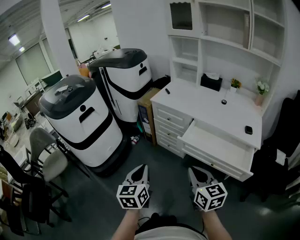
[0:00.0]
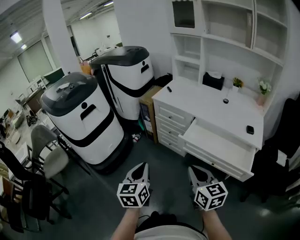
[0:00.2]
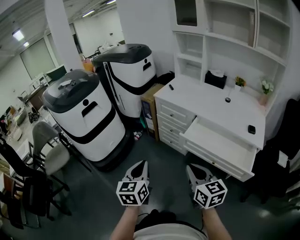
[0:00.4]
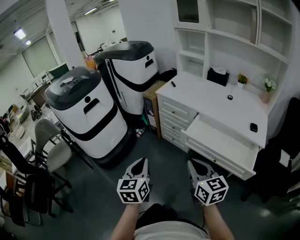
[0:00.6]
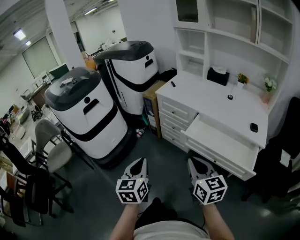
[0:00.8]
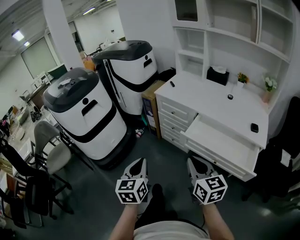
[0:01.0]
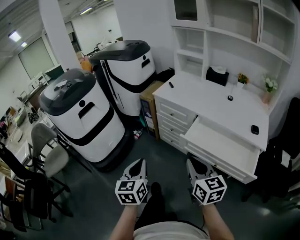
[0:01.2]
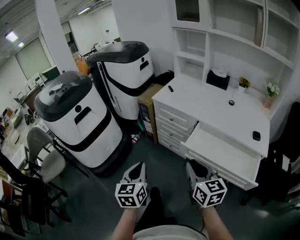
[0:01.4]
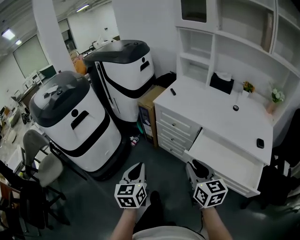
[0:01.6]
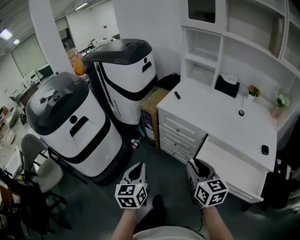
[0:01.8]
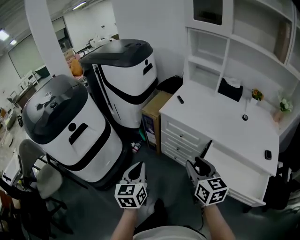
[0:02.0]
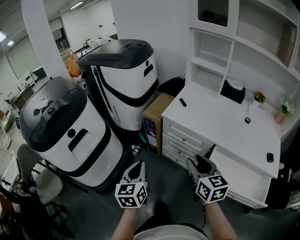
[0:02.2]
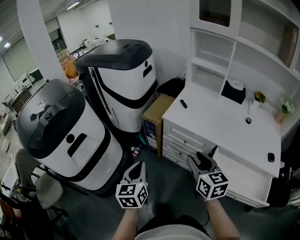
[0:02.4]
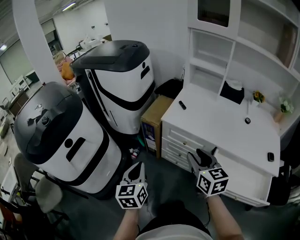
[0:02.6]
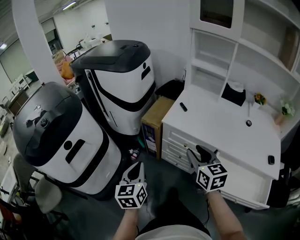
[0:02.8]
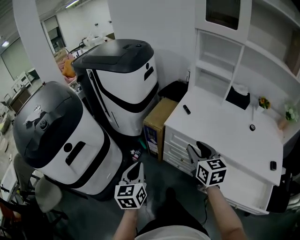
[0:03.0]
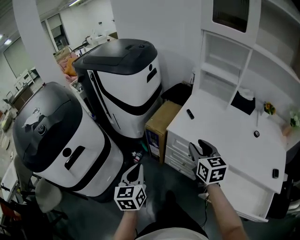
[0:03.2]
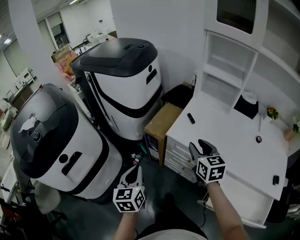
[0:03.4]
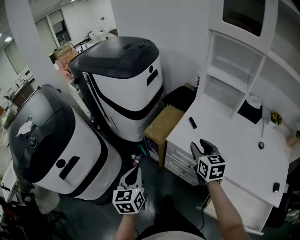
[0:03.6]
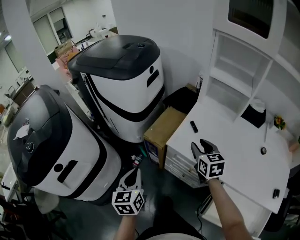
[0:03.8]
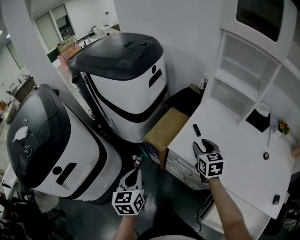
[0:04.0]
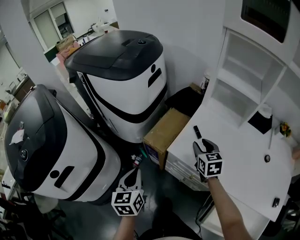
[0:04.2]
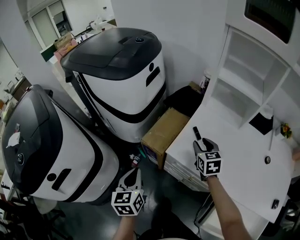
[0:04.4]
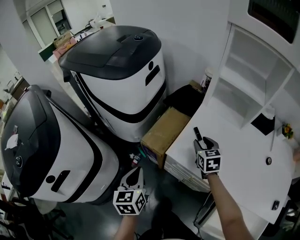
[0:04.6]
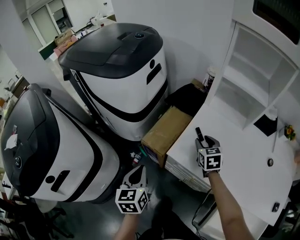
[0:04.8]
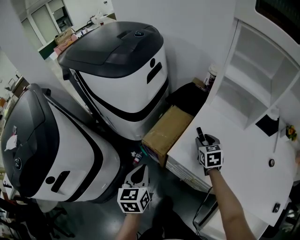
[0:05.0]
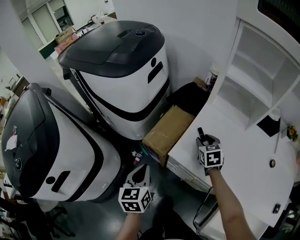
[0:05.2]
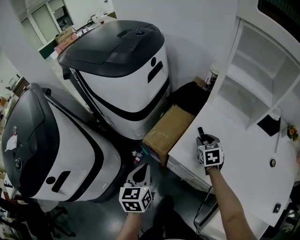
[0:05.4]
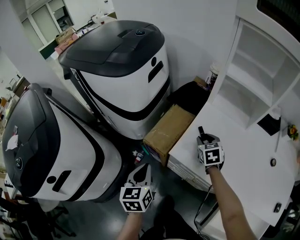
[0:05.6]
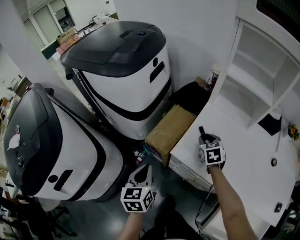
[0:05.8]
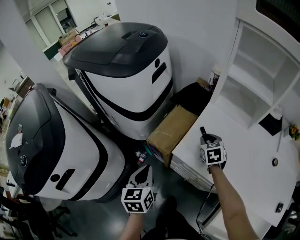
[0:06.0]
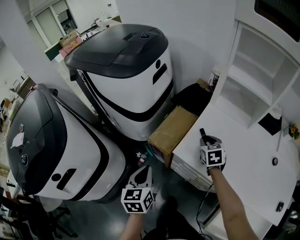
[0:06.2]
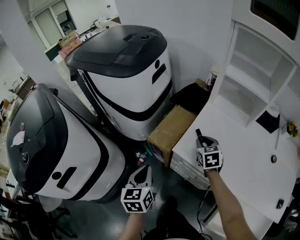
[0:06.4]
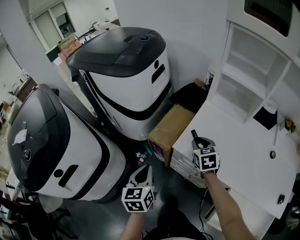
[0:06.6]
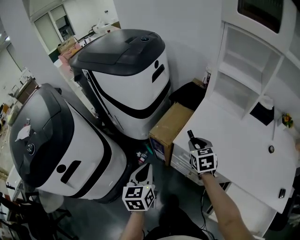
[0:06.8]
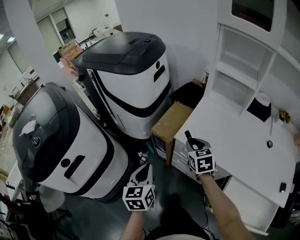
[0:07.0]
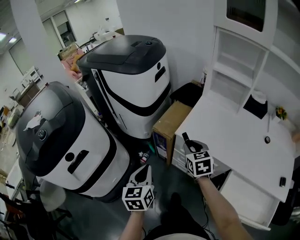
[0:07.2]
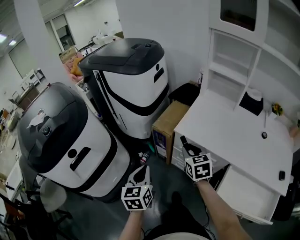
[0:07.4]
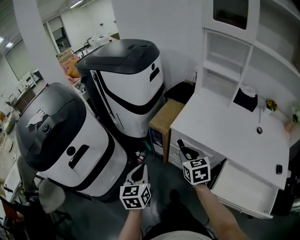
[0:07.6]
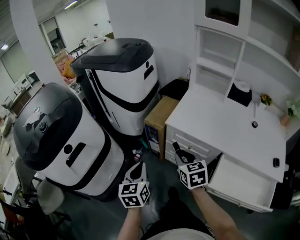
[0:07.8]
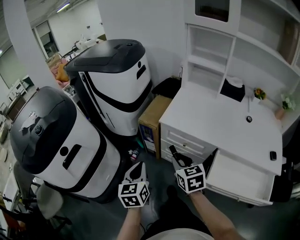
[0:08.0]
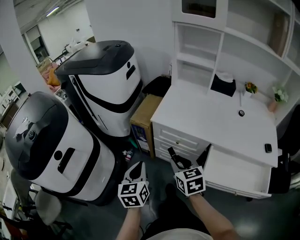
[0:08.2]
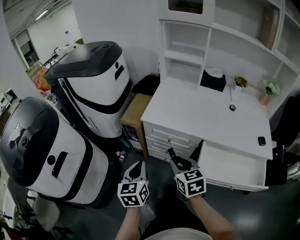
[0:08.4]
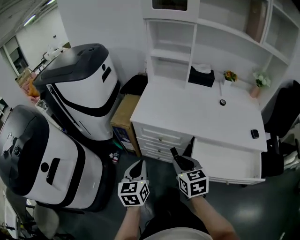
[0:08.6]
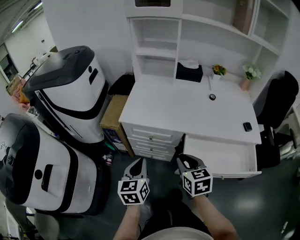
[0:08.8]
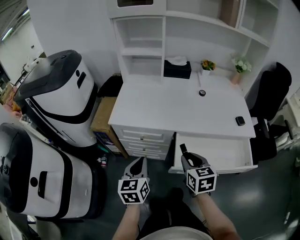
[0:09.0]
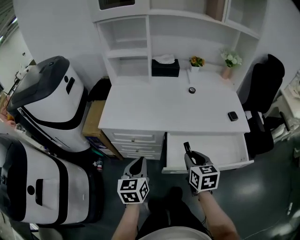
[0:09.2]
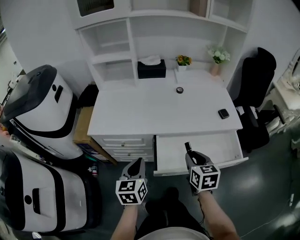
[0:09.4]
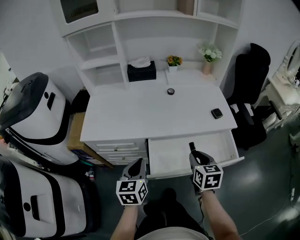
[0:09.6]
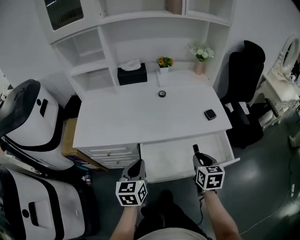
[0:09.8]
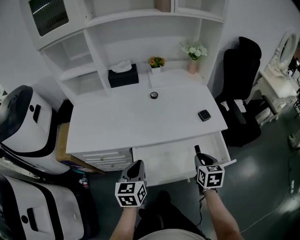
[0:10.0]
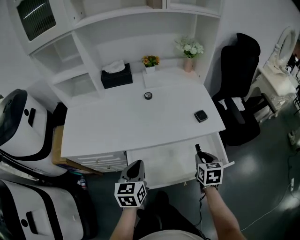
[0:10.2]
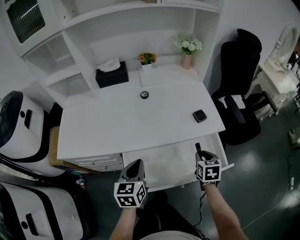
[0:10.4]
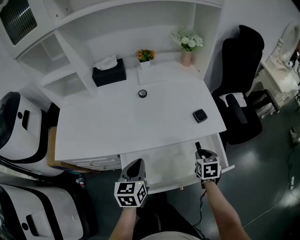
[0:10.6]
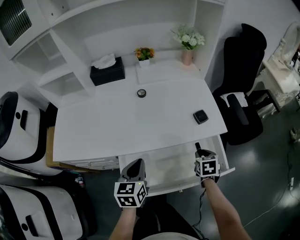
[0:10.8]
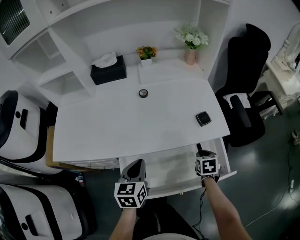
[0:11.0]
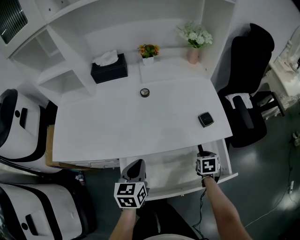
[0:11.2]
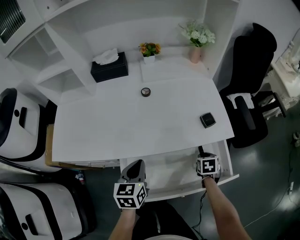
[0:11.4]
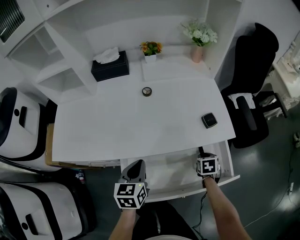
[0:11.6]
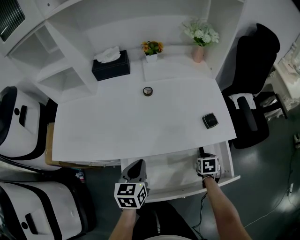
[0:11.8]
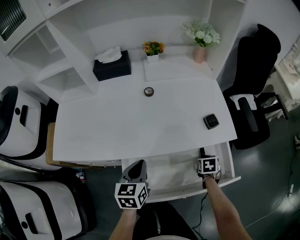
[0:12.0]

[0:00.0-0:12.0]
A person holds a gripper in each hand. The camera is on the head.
0:00.0 to 0:01.6: Both grippers travel together forward, about 15 cm.
0:01.6 to 0:03.0: Both grippers travel together forward, approximately 30 cm.
0:03.0 to 0:04.4: The left gripper goes about 20 cm forward. Meanwhile the right gripper goes approximately 30 cm forward and downward.
0:04.4 to 0:06.0: The right gripper heads downward, covering some 5 cm.
0:06.0 to 0:07.6: The left gripper shifts some 20 cm backward. The right gripper shifts about 30 cm backward and to the left.
0:07.6 to 0:09.0: The left gripper ends up some 20 cm from where it was, and rotates some 30 degrees. The right gripper changes place by about 30 cm, and swivels approximately 30 degrees.
0:09.0 to 0:10.4: The right gripper shifts some 35 cm to the right, and changes its angle by some 30 degrees; the left gripper moves to the right and forward, approximately 30 cm.
0:10.4 to 0:12.0: The right gripper travels downward by about 15 cm, and rotates about 20 degrees, while the left gripper goes about 5 cm forward.

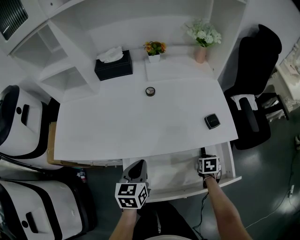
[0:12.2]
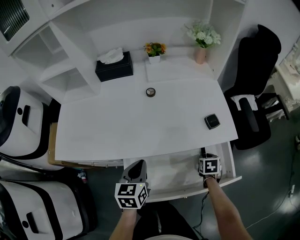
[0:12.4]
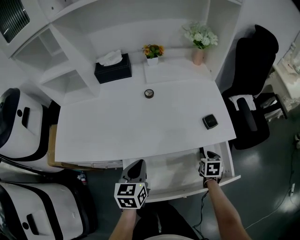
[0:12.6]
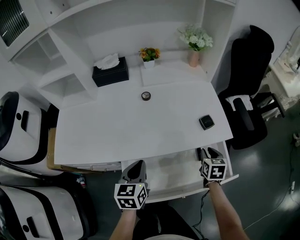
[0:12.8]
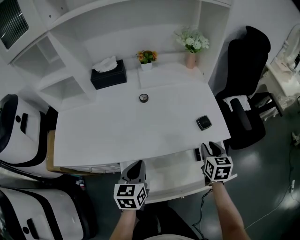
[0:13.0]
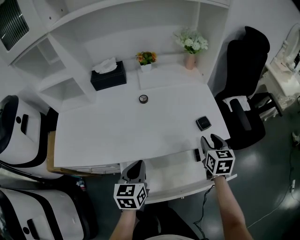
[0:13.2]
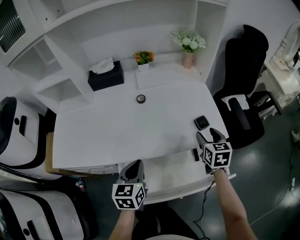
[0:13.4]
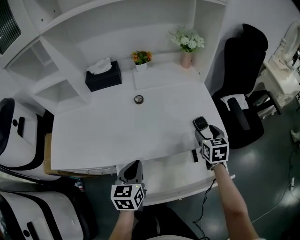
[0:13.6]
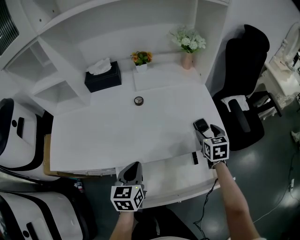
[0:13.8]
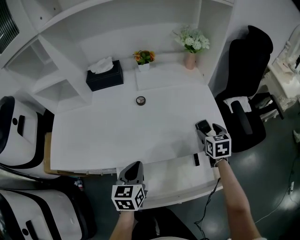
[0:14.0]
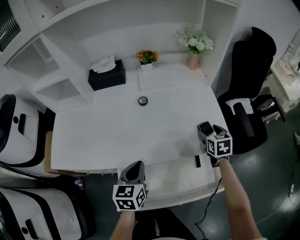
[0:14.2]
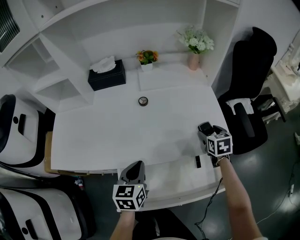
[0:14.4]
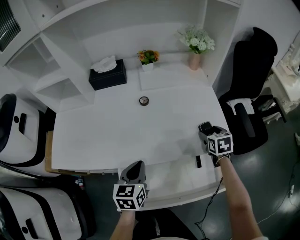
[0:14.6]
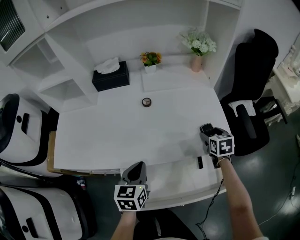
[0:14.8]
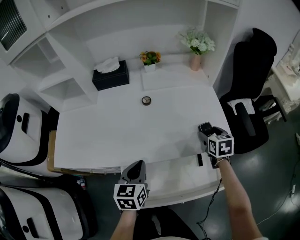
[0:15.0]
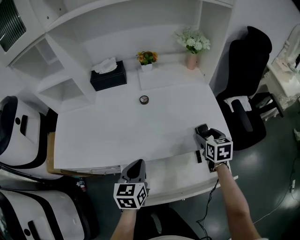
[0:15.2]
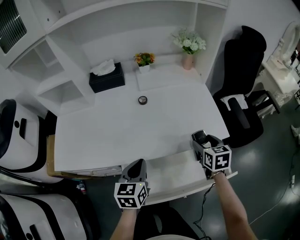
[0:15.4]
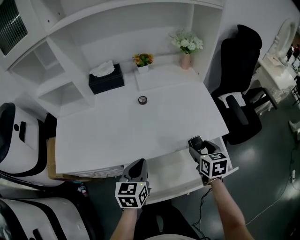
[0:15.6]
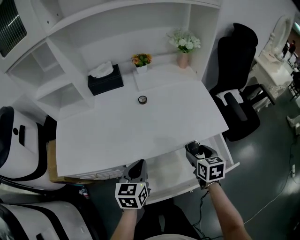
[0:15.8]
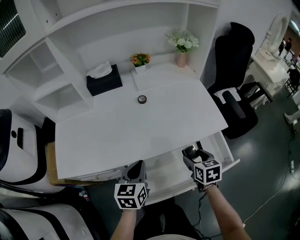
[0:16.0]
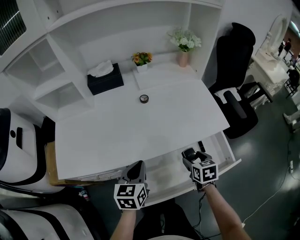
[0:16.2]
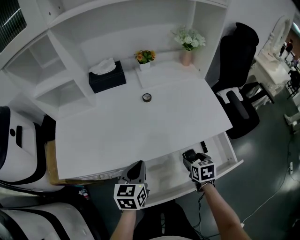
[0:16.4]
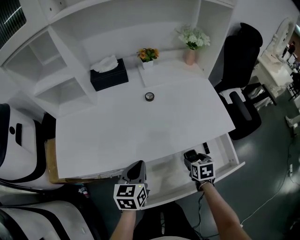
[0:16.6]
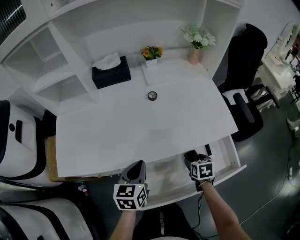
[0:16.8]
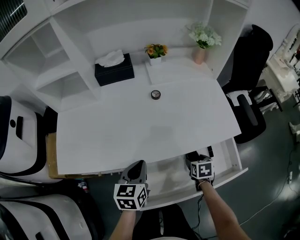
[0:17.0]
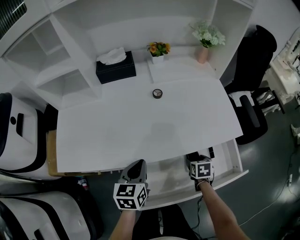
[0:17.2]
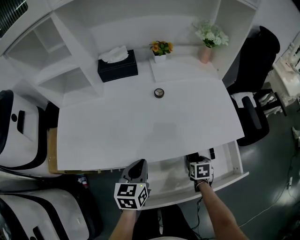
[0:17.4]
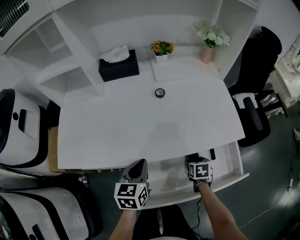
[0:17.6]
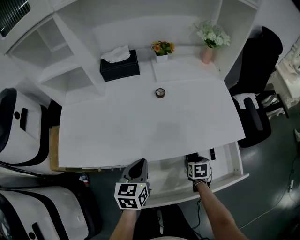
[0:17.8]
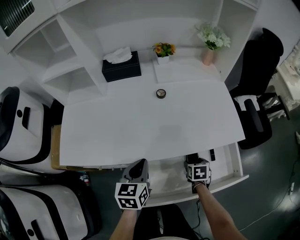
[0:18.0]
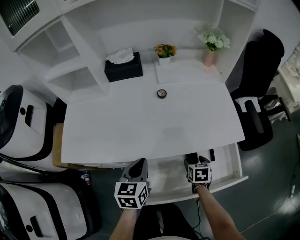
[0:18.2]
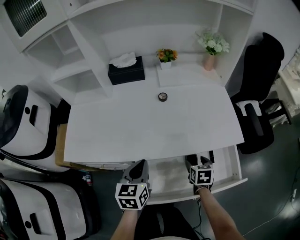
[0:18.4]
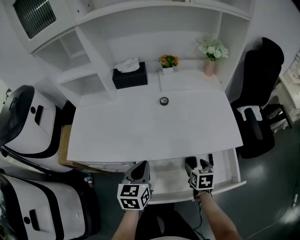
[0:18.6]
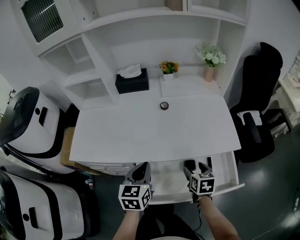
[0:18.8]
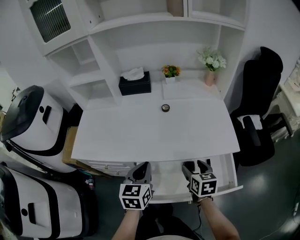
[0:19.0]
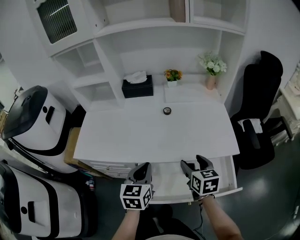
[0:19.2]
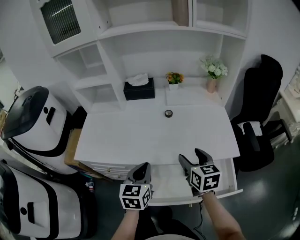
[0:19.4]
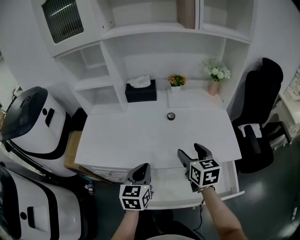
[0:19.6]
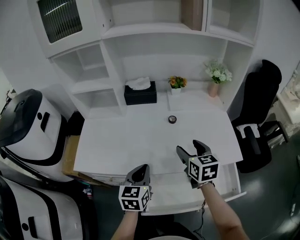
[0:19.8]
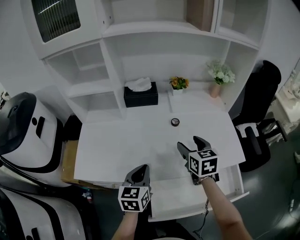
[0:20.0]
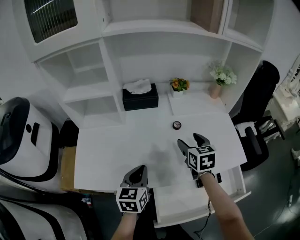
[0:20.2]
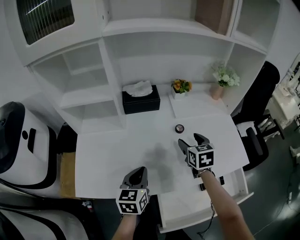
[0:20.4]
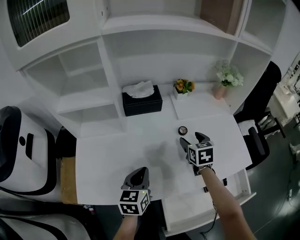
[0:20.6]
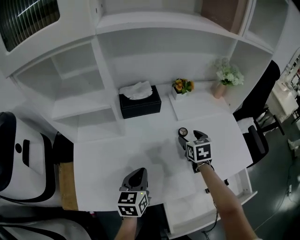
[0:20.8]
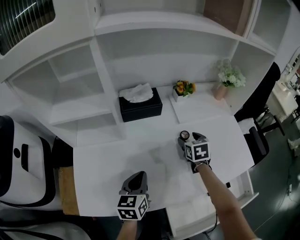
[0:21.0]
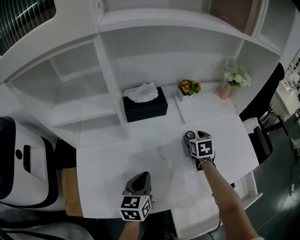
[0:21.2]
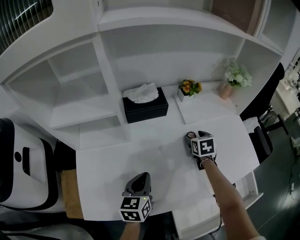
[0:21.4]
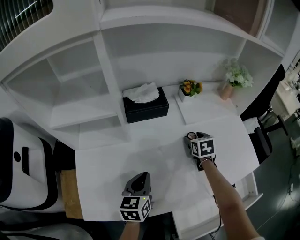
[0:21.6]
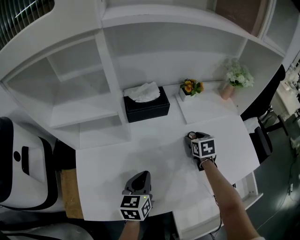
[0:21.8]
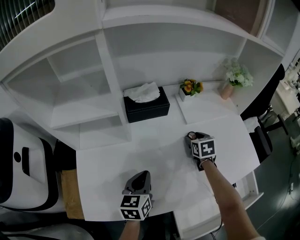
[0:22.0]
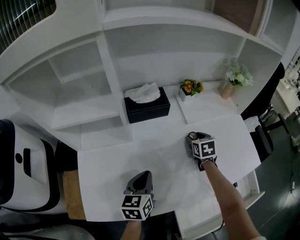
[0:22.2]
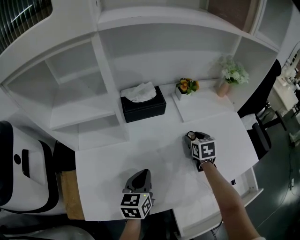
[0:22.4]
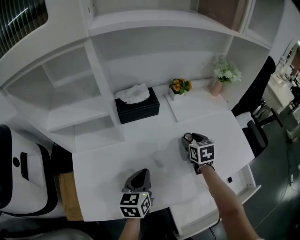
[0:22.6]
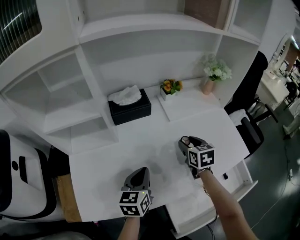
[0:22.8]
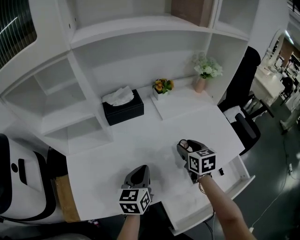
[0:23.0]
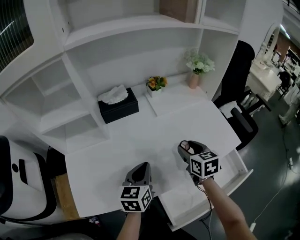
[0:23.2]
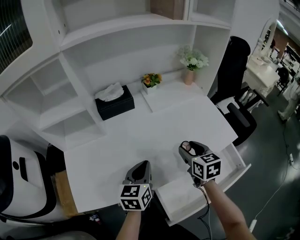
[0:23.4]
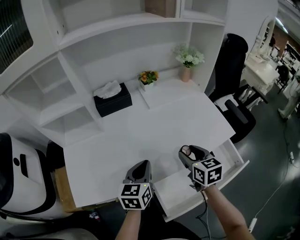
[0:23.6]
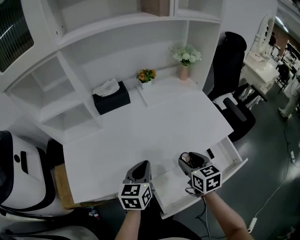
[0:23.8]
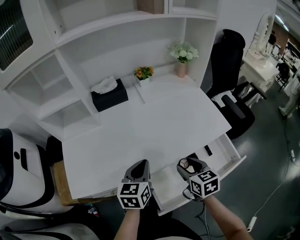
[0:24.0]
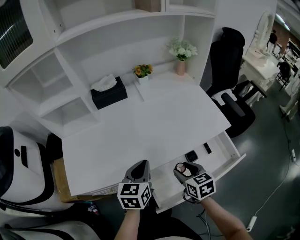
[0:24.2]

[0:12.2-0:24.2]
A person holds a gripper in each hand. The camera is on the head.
0:12.2 to 0:13.8: The right gripper is displaced upward and forward by approximately 20 cm, swivels roughly 30 degrees, and opens up.
0:13.8 to 0:15.2: There are only small adjustments of the grippers.
0:15.2 to 0:16.6: The right gripper moves backward, downward and to the left, approximately 20 cm. The left gripper is displaced to the left by some 5 cm.
0:18.2 to 0:19.8: The right gripper shifts approximately 25 cm upward and to the left, and points its fingers about 30 degrees further upward. The left gripper shifts roughly 5 cm upward.
0:19.8 to 0:21.2: The left gripper is displaced forward and to the left by about 20 cm. Meanwhile the right gripper moves forward and downward, about 25 cm, and rotates roughly 30 degrees.
0:21.2 to 0:22.6: The grippers stay close to where they were, moving slightly.
0:22.6 to 0:24.2: The left gripper heads to the right and backward, covering some 20 cm; the right gripper moves backward, some 30 cm.
